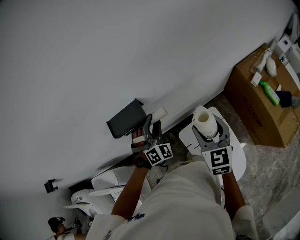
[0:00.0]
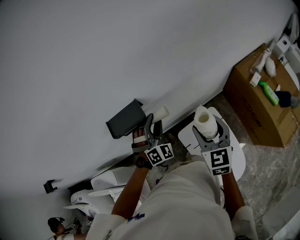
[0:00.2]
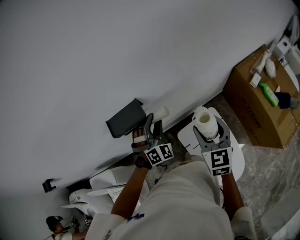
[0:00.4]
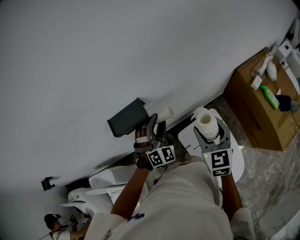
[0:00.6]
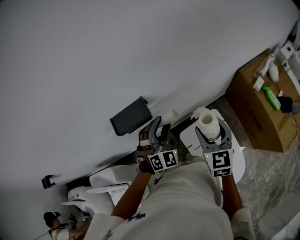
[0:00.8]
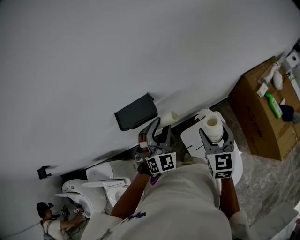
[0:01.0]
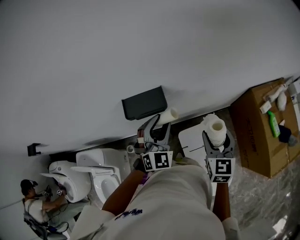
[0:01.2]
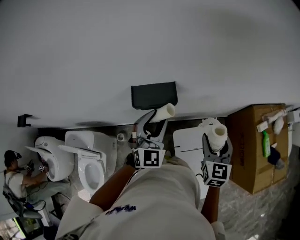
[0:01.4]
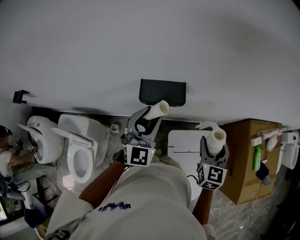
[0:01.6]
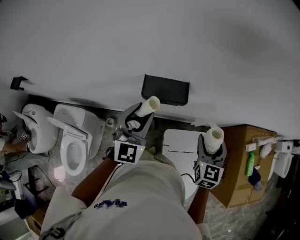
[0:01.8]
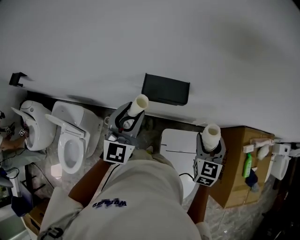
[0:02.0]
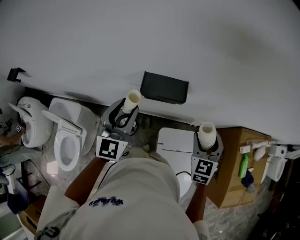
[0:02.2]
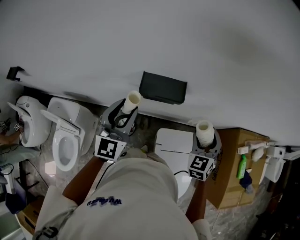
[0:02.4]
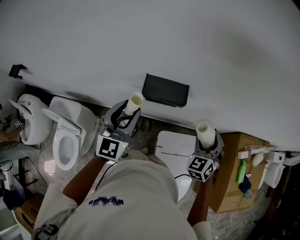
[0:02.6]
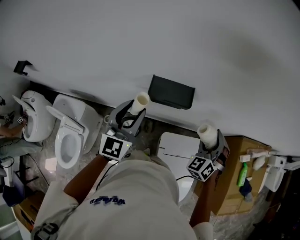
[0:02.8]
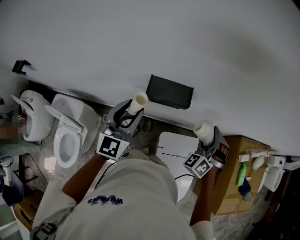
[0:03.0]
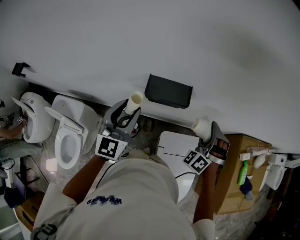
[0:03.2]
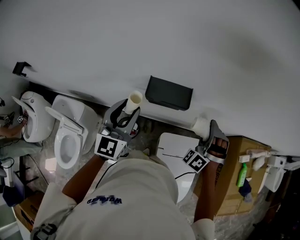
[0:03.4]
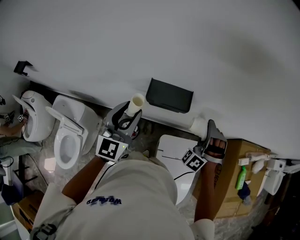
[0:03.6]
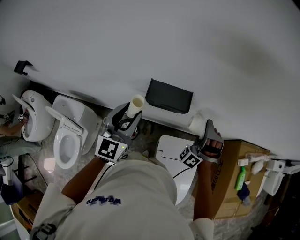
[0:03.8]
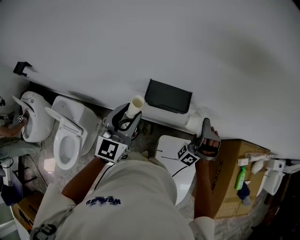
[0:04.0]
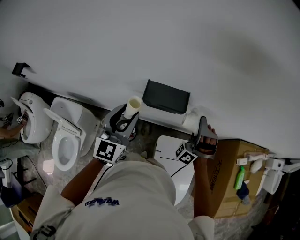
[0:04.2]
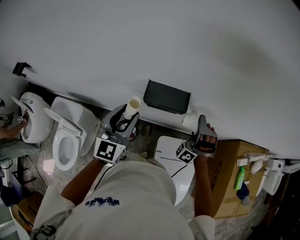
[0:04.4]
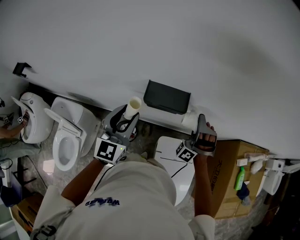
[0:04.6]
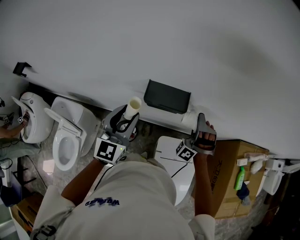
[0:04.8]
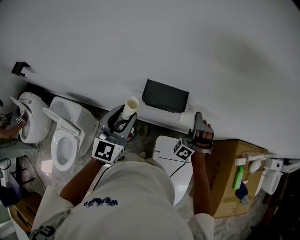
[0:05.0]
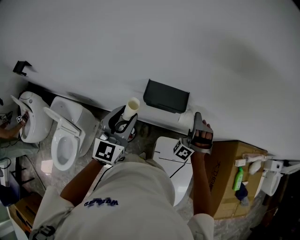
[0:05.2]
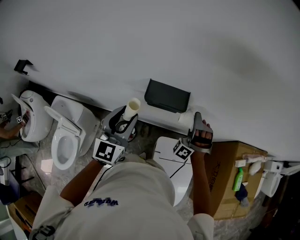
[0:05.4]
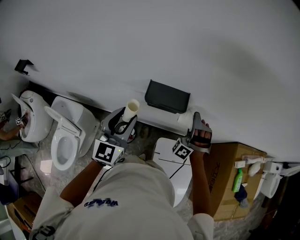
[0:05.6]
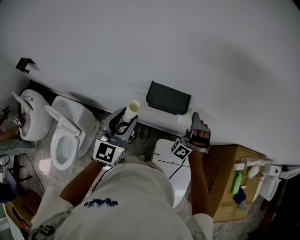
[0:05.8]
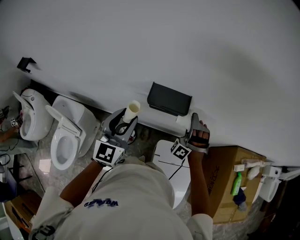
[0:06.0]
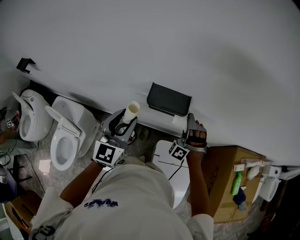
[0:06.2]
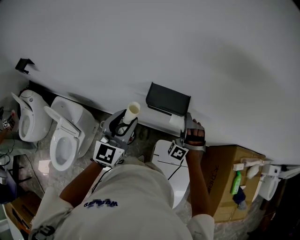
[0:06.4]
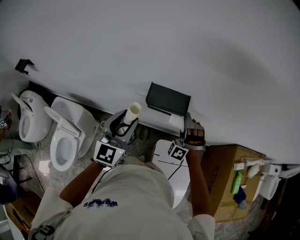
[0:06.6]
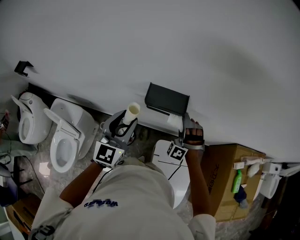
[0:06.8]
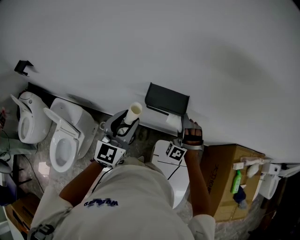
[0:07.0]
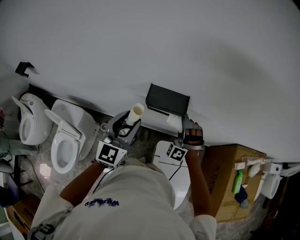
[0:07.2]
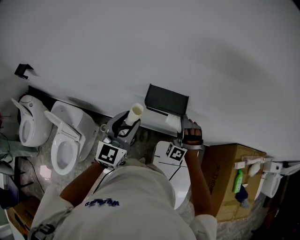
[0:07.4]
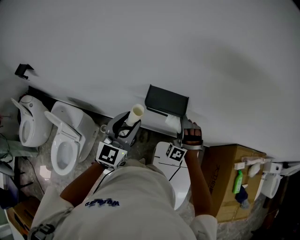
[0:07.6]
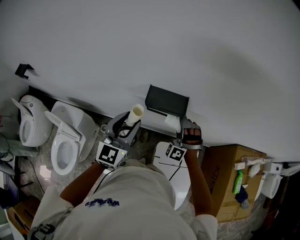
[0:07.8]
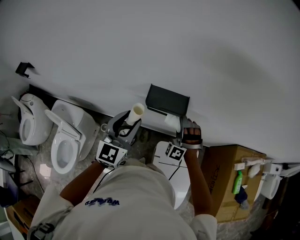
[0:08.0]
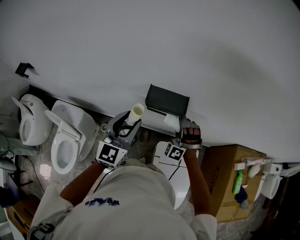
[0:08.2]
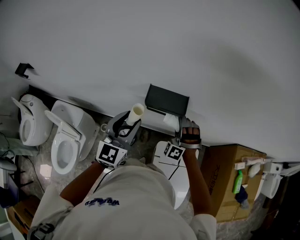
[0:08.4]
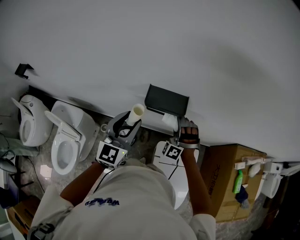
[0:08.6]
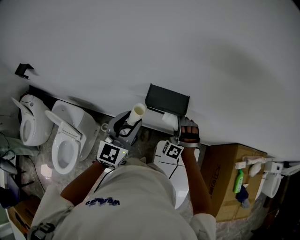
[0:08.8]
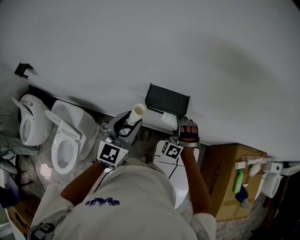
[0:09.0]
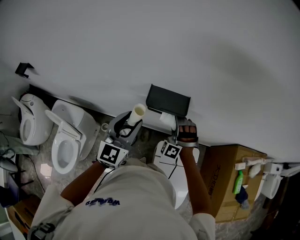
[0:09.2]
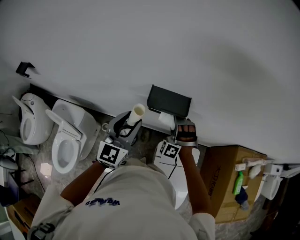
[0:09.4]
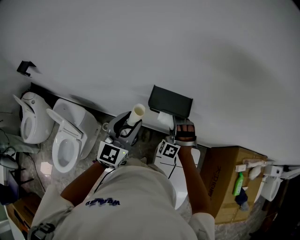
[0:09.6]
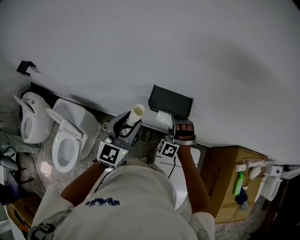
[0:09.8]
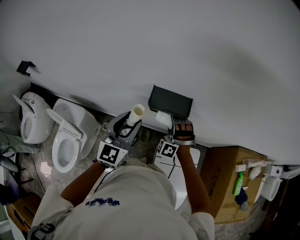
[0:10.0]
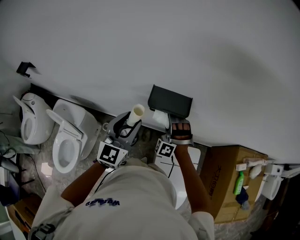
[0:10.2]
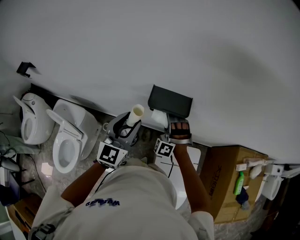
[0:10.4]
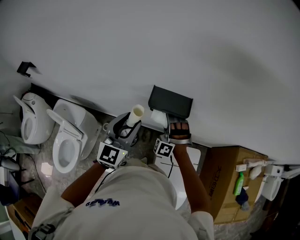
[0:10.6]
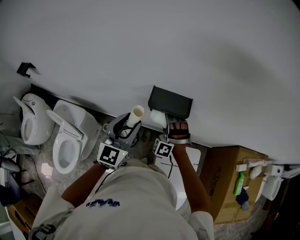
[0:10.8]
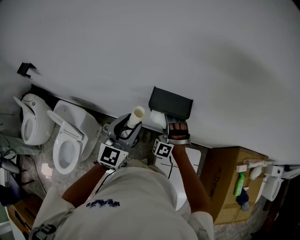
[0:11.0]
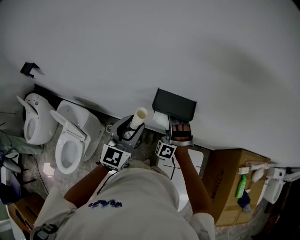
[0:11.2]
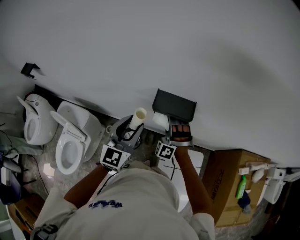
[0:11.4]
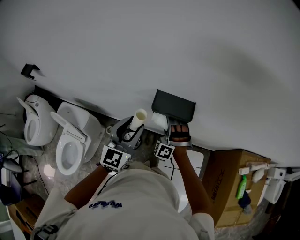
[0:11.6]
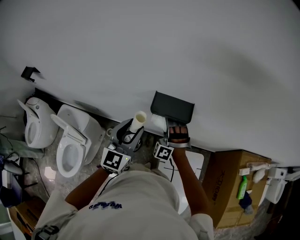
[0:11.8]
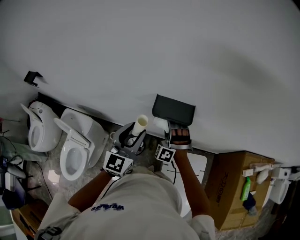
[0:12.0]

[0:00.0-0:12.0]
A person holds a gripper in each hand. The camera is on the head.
0:00.0 to 0:01.6: The left gripper travels to the left, upward and backward by approximately 15 cm, and twists about 40 degrees counterclockwise, seen from behind.
0:01.6 to 0:03.0: The left gripper travels to the left by roughly 5 cm; the right gripper is displaced forward by roughly 5 cm, and rotates around the line of its fingers by about 70 degrees, counterclockwise from behind.
0:03.0 to 0:04.4: The right gripper moves to the left, roughly 5 cm, and turns by about 30 degrees.
0:04.4 to 0:06.0: There are only small adjustments of the grippers.
0:06.0 to 0:07.6: The grippers make only small movements.
0:07.6 to 0:09.0: The grippers make only small movements.
0:09.0 to 0:10.4: The right gripper goes some 5 cm to the left.
0:10.4 to 0:12.0: The grippers make only small movements.

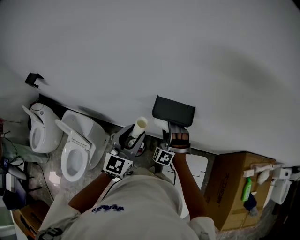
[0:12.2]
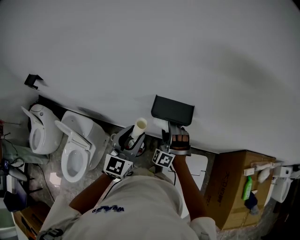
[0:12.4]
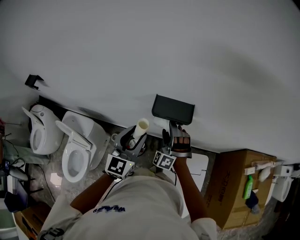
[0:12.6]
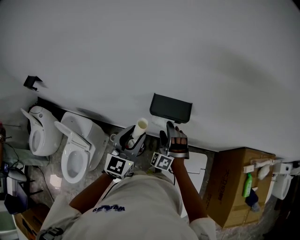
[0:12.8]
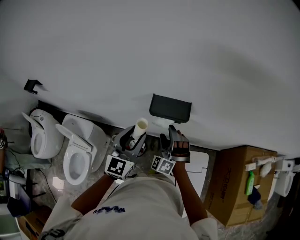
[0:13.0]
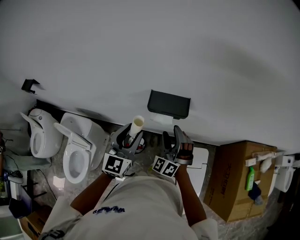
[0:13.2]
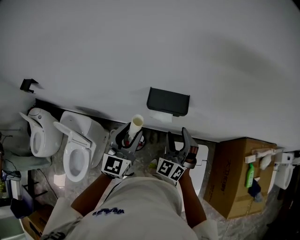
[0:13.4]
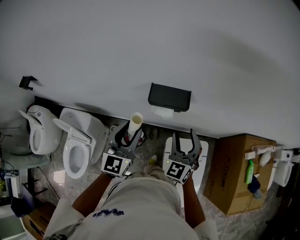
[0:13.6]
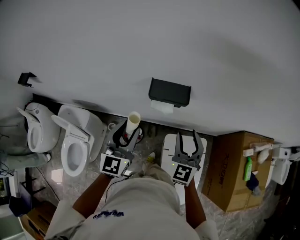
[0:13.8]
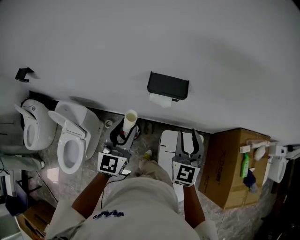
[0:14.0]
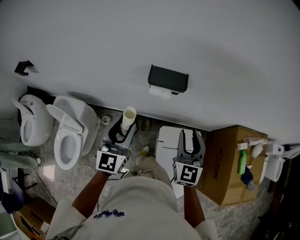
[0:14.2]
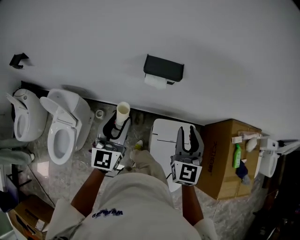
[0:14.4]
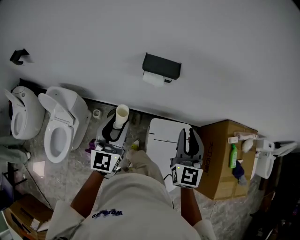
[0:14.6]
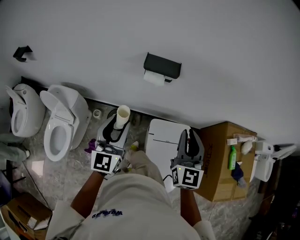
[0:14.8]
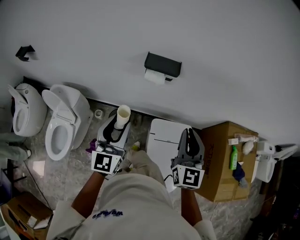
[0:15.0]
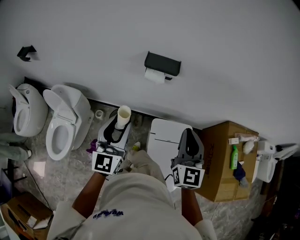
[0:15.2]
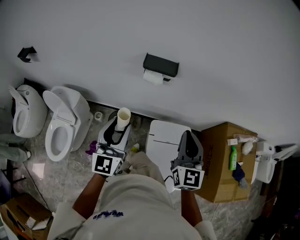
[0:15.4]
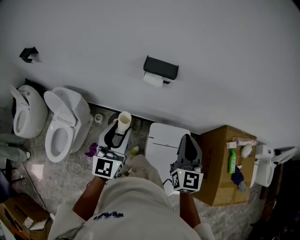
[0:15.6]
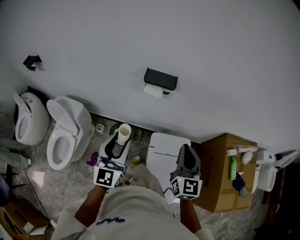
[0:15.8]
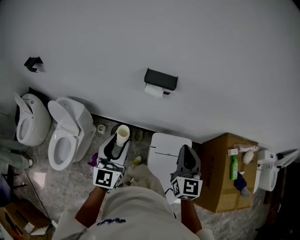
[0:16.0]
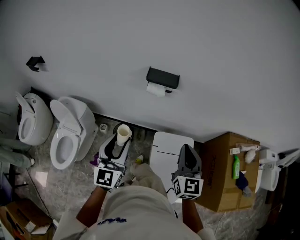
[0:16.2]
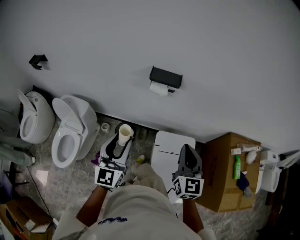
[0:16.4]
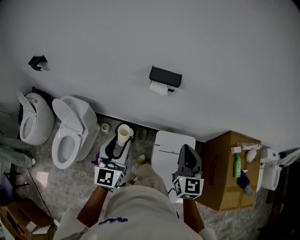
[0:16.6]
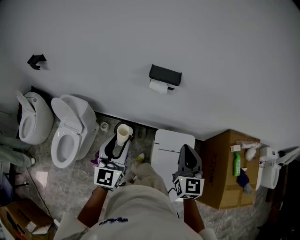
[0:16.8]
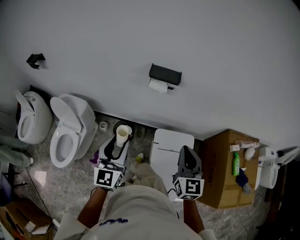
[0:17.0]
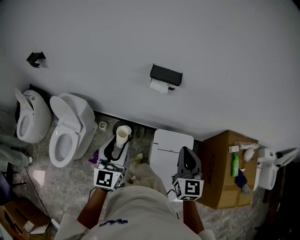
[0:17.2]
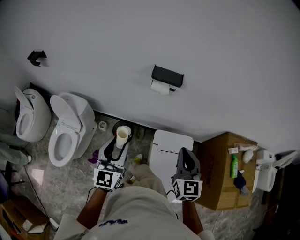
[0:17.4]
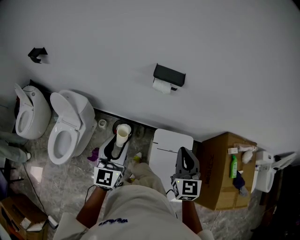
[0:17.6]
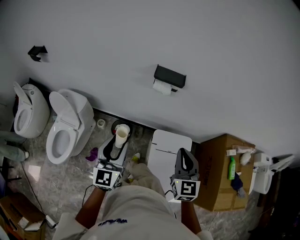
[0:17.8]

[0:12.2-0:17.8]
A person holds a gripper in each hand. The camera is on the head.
0:12.2 to 0:13.6: The right gripper travels to the right, upward and backward by some 15 cm, rolls clockwise, seen from behind, by roughly 50 degrees, and closes its fingers.
0:13.6 to 0:15.0: The left gripper heads backward, covering roughly 15 cm; the right gripper heads backward and upward, covering roughly 20 cm, swivels roughly 20 degrees, and closes its fingers.
0:15.0 to 0:16.4: The right gripper ends up approximately 5 cm from where it was, while the left gripper shifts roughly 5 cm backward.
0:16.4 to 0:17.8: The grippers stay close to where they were, moving slightly.

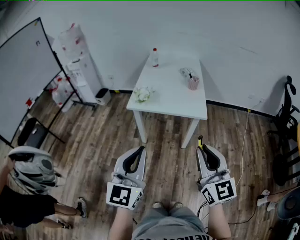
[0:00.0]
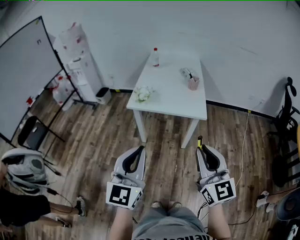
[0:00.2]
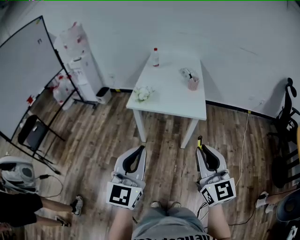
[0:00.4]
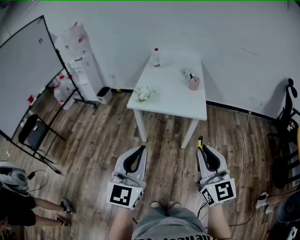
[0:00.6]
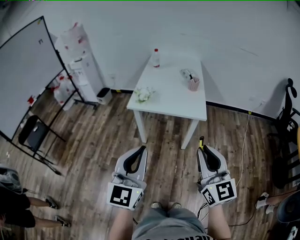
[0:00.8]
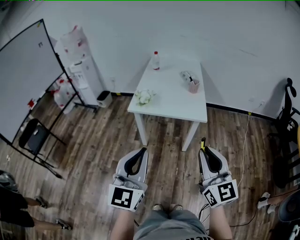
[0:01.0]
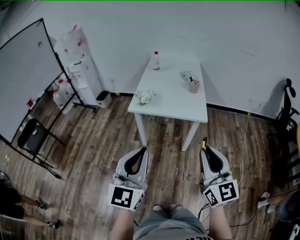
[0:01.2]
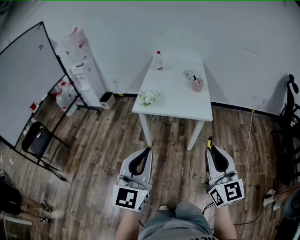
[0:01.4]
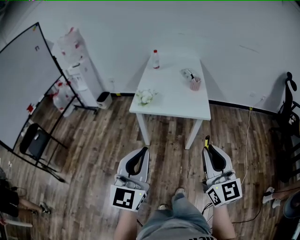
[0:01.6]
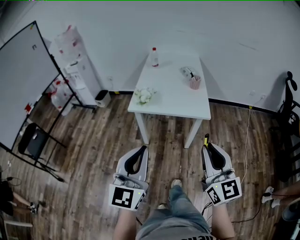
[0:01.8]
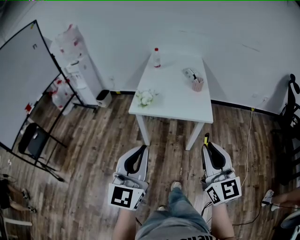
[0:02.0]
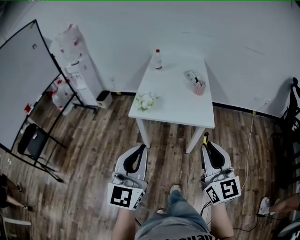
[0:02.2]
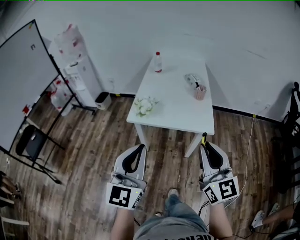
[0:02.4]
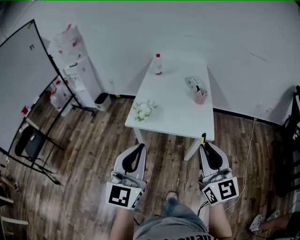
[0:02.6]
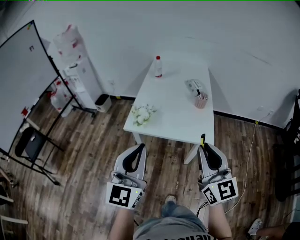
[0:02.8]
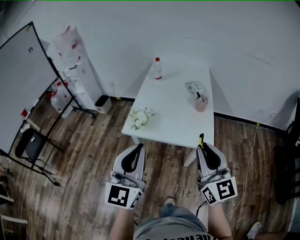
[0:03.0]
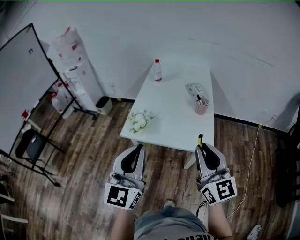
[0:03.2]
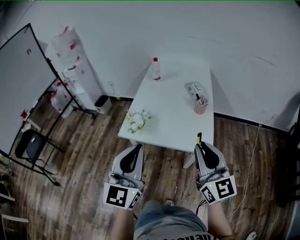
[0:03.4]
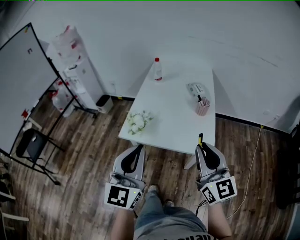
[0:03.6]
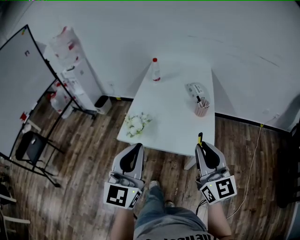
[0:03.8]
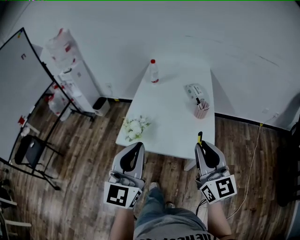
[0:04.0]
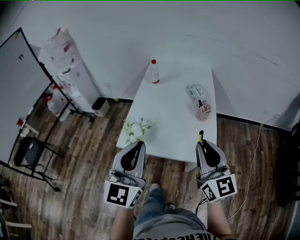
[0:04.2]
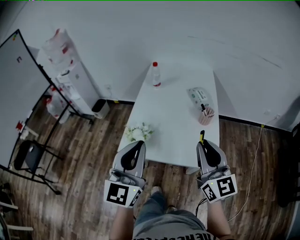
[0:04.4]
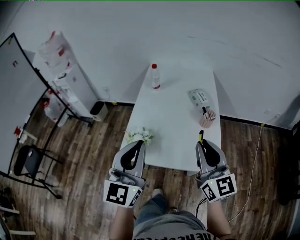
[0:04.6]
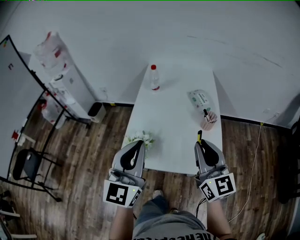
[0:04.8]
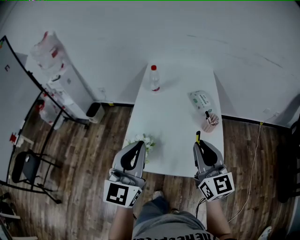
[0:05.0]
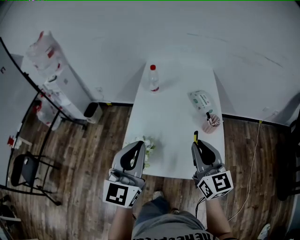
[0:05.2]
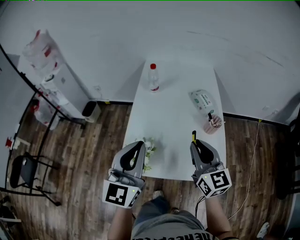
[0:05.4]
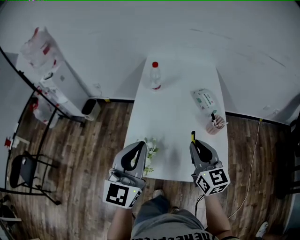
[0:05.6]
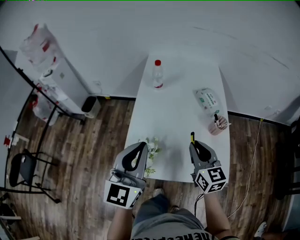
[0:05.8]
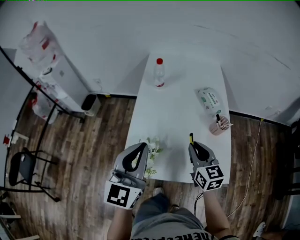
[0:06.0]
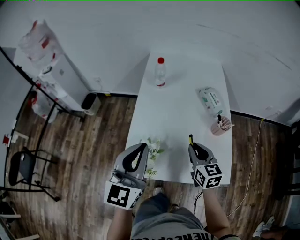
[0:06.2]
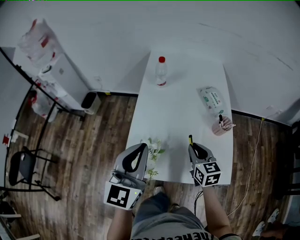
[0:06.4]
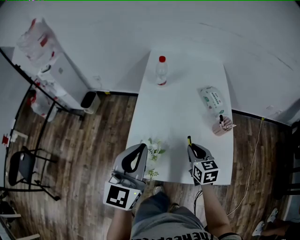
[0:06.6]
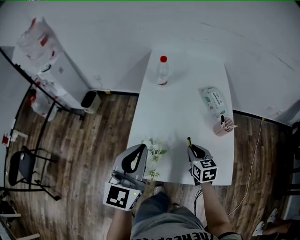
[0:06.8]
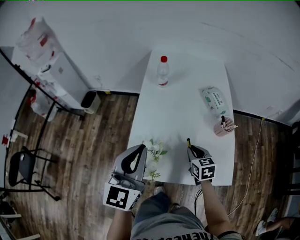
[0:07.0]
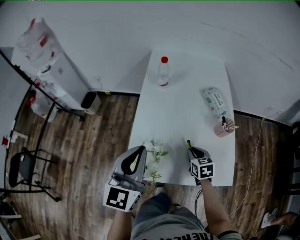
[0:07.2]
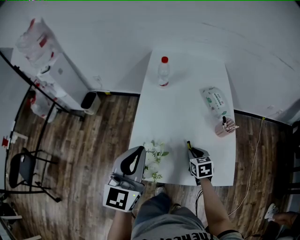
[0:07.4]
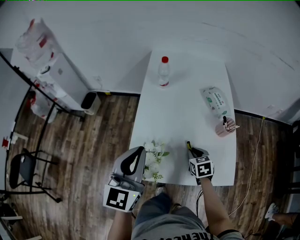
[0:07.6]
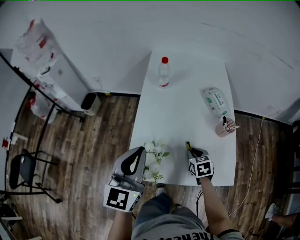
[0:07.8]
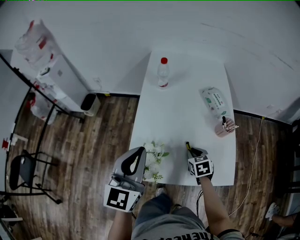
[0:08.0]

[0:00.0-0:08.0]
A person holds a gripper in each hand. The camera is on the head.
0:00.0 to 0:01.6: The grippers make only small movements.
0:01.6 to 0:03.2: The two grippers go roughly 25 cm forward.
0:03.2 to 0:04.8: Both grippers move forward, some 20 cm.
0:04.8 to 0:06.4: The right gripper shifts roughly 25 cm downward and forward, and tilts its fingers about 30 degrees downward. Meanwhile the left gripper is displaced forward and downward by about 10 cm.
0:06.4 to 0:08.0: The right gripper heads downward, covering roughly 10 cm, and changes its angle by some 30 degrees.
